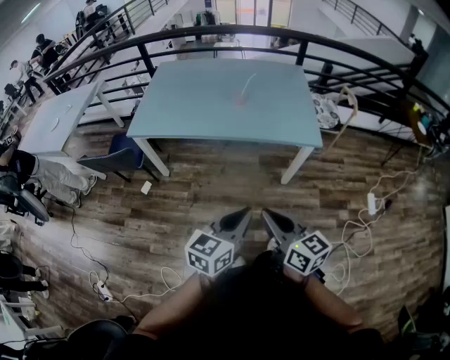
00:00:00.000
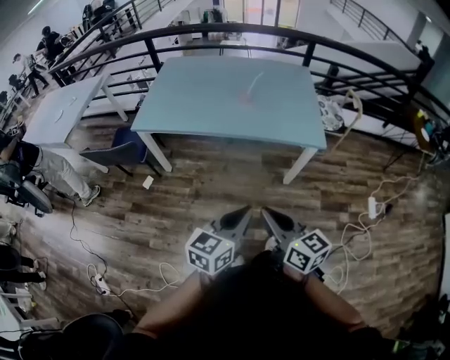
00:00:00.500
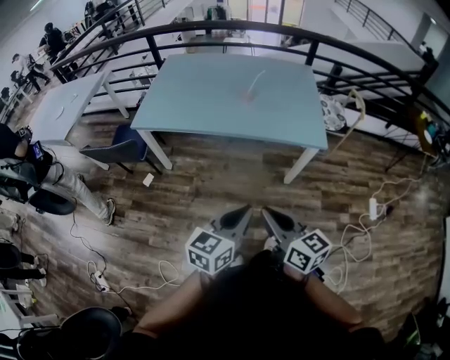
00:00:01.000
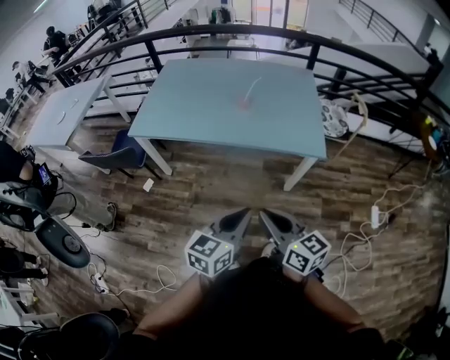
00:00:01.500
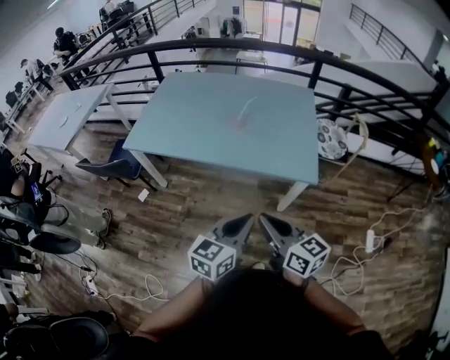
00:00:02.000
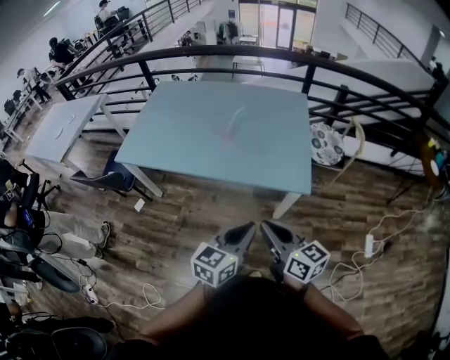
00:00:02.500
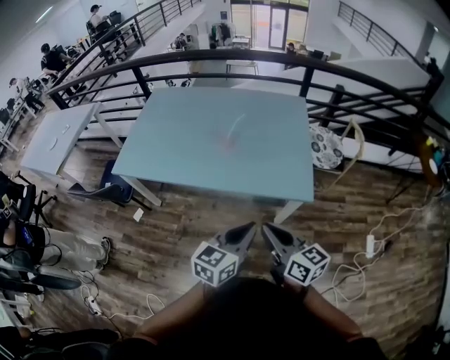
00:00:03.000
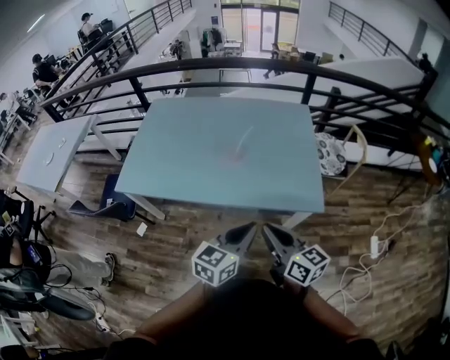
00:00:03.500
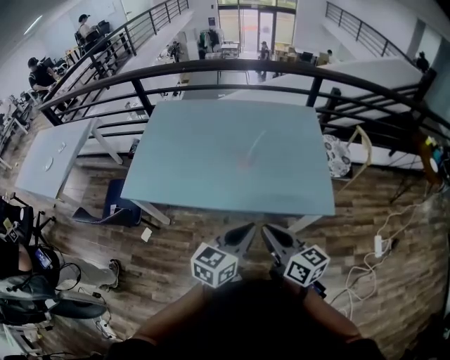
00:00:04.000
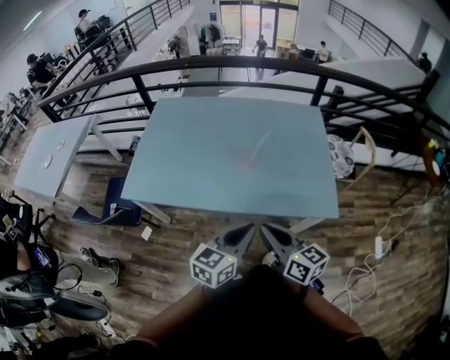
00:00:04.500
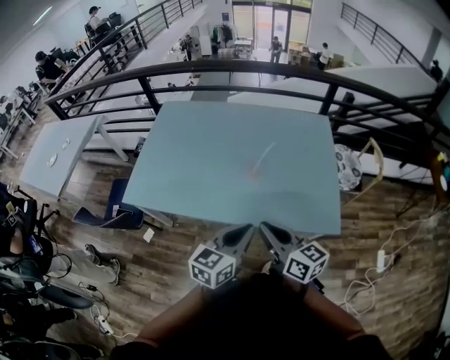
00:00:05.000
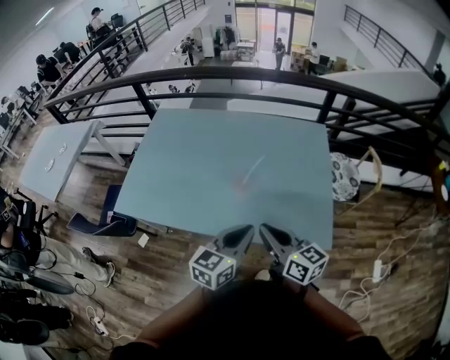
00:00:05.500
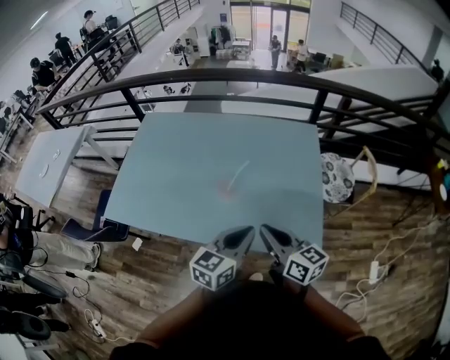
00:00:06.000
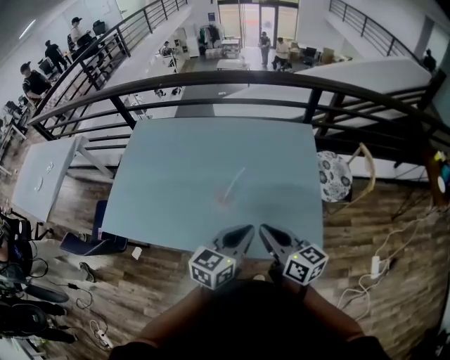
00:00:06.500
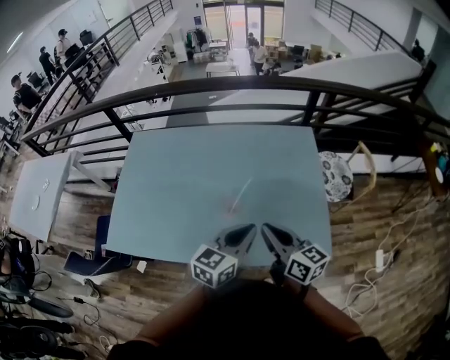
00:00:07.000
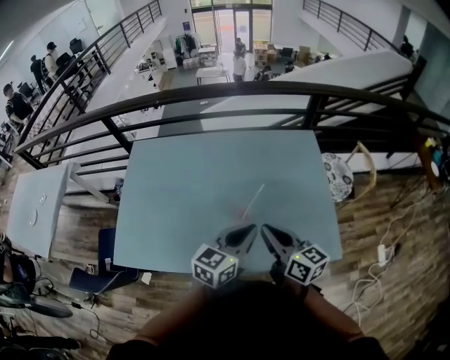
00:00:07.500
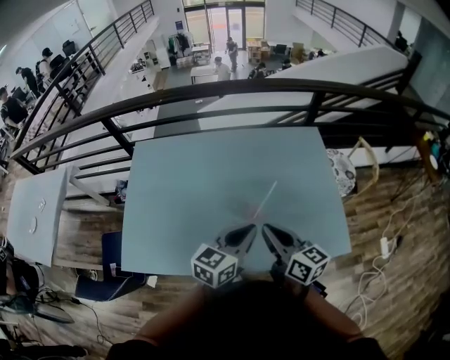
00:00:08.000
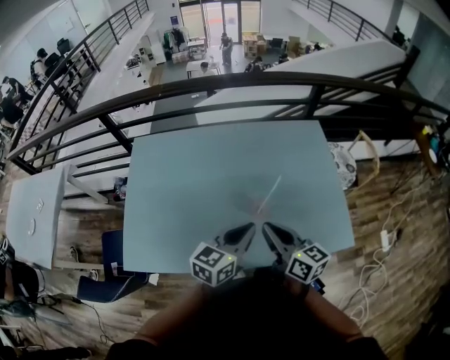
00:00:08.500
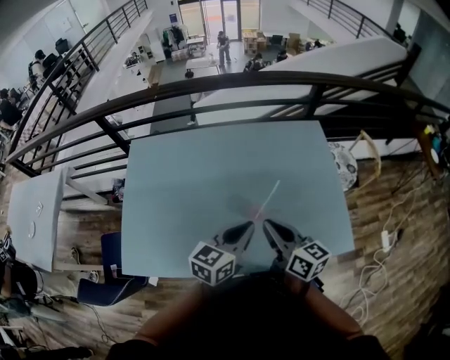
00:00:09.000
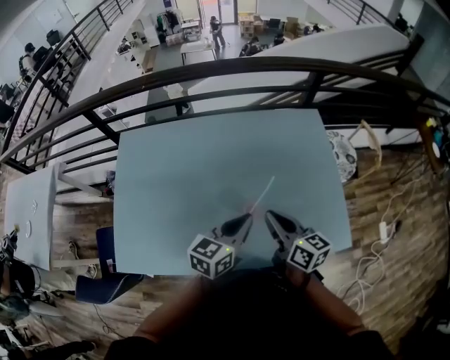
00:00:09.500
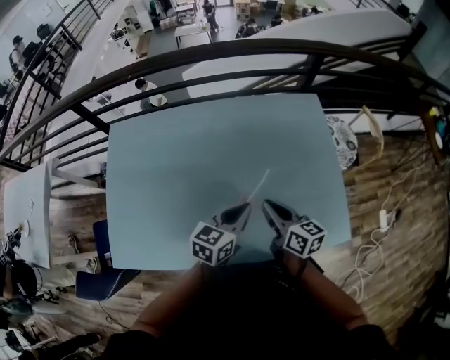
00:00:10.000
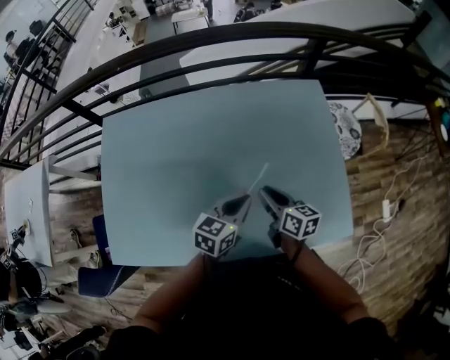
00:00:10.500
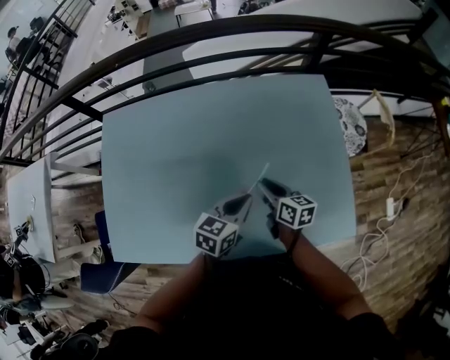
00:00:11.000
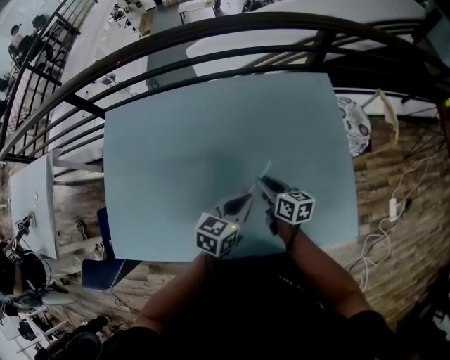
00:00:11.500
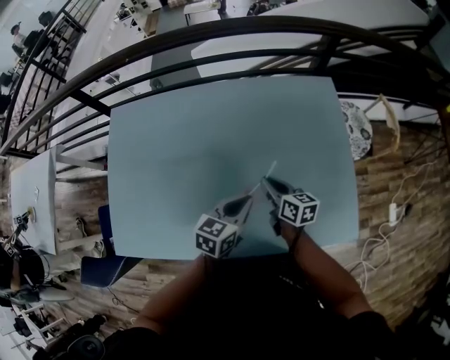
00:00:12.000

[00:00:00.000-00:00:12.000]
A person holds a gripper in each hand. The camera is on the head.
00:00:00.000 to 00:00:02.000: The left gripper moves to the right and forward, some 20 cm; the right gripper is displaced forward and to the right by some 20 cm.
00:00:02.000 to 00:00:04.000: The two grippers go some 25 cm forward and to the left.
00:00:04.000 to 00:00:06.000: The two grippers go approximately 25 cm forward and to the right.
00:00:06.000 to 00:00:08.000: Both grippers travel together to the left and forward, about 25 cm.
00:00:08.000 to 00:00:10.000: The right gripper is displaced forward, downward and to the right by about 15 cm, while the left gripper moves forward and downward, about 15 cm.
00:00:10.000 to 00:00:12.000: The left gripper moves downward, roughly 5 cm; the right gripper is displaced downward and forward by approximately 15 cm.

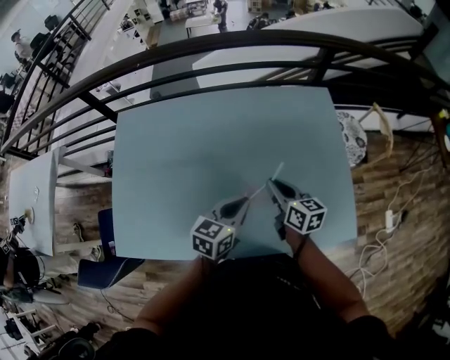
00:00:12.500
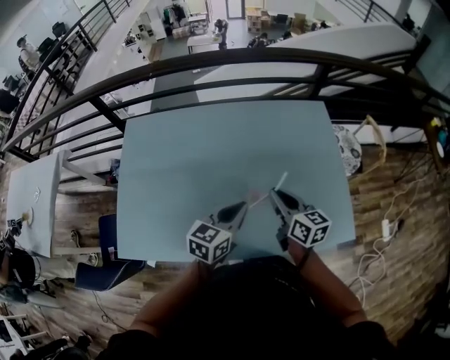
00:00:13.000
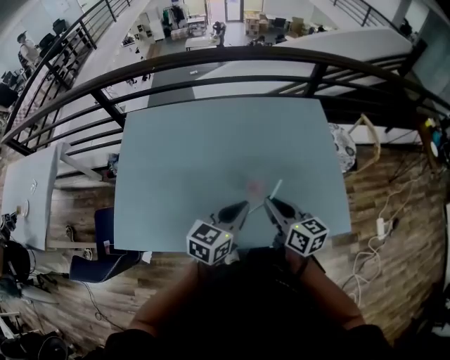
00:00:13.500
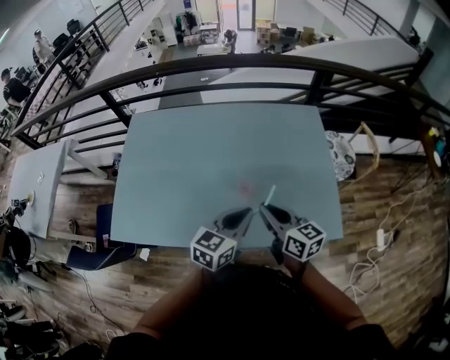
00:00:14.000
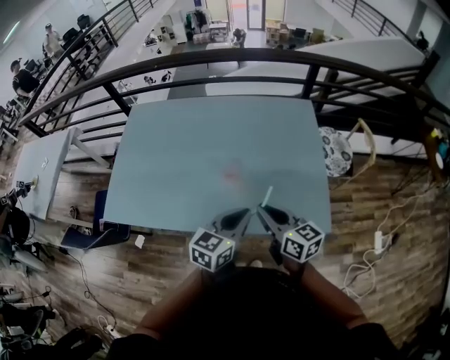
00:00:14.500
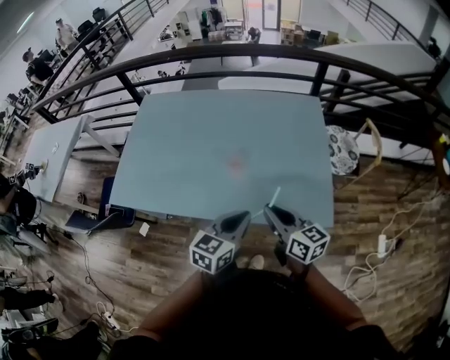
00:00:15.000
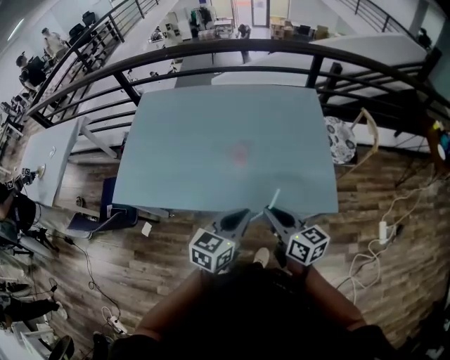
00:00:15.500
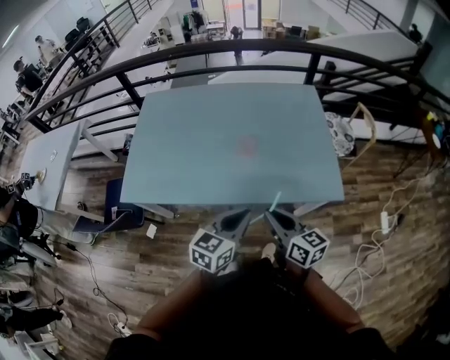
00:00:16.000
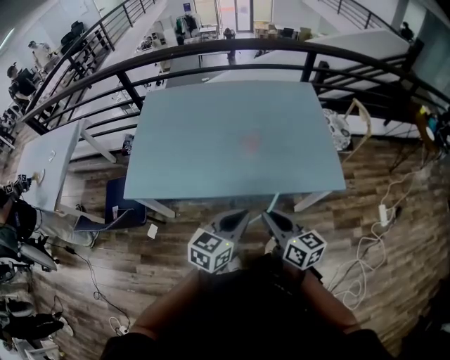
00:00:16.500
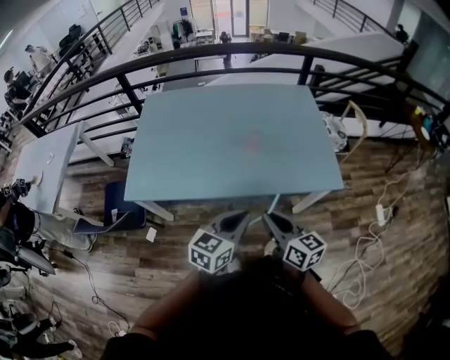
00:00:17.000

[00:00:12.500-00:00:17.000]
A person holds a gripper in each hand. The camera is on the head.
00:00:12.500 to 00:00:14.500: The left gripper goes roughly 25 cm backward, to the right and upward; the right gripper shifts some 25 cm backward and upward.
00:00:14.500 to 00:00:17.000: Both grippers move backward and to the left, roughly 25 cm.

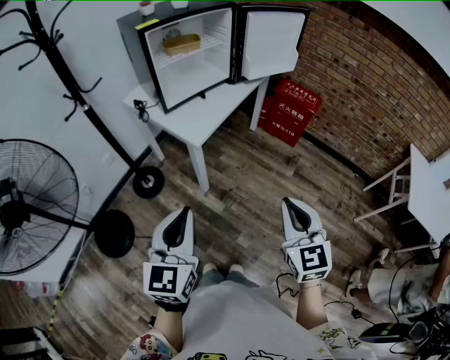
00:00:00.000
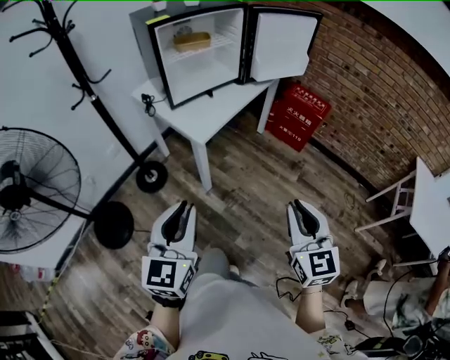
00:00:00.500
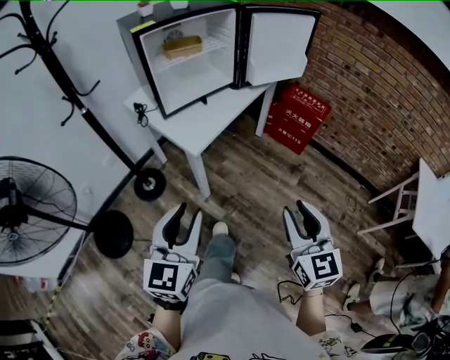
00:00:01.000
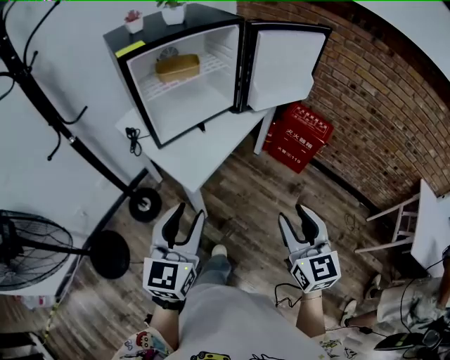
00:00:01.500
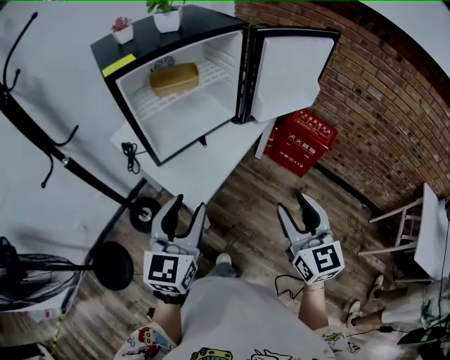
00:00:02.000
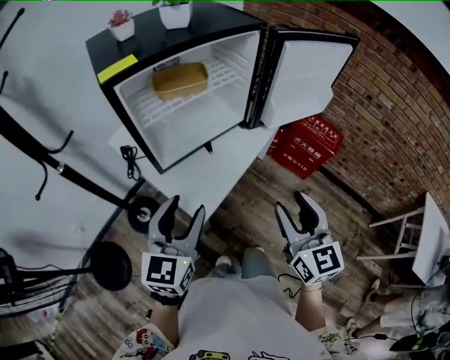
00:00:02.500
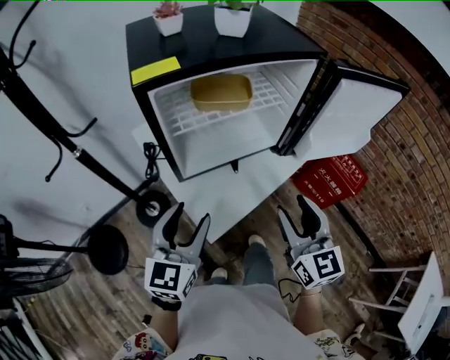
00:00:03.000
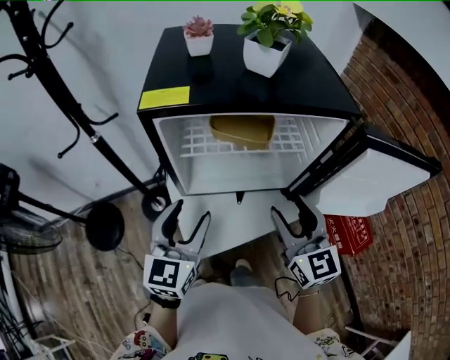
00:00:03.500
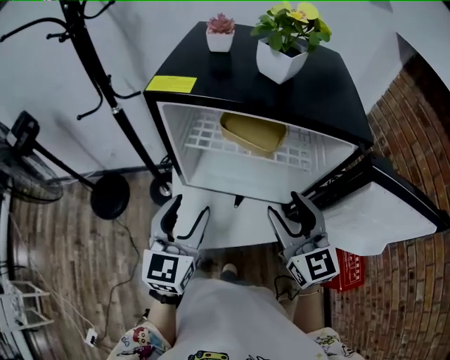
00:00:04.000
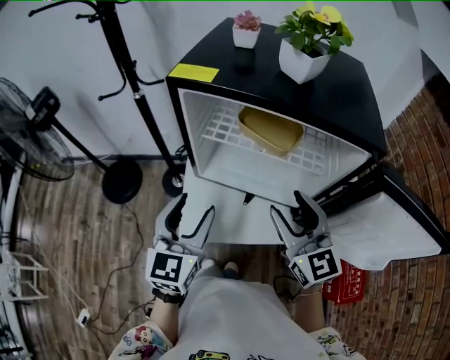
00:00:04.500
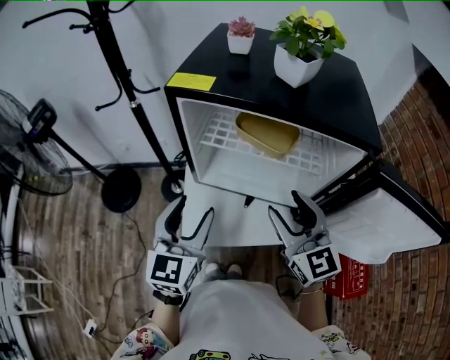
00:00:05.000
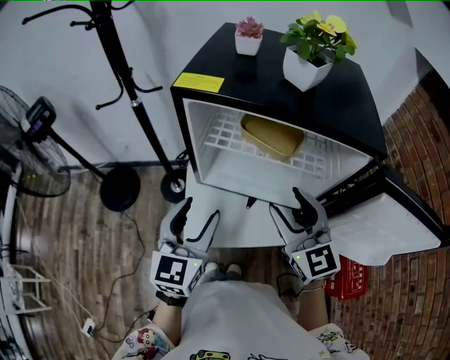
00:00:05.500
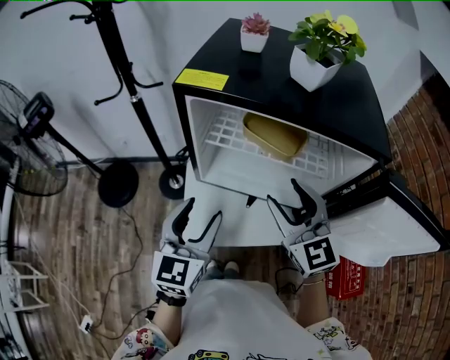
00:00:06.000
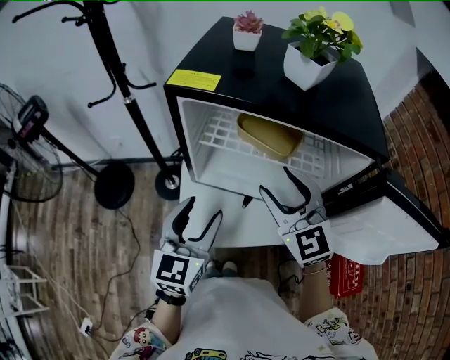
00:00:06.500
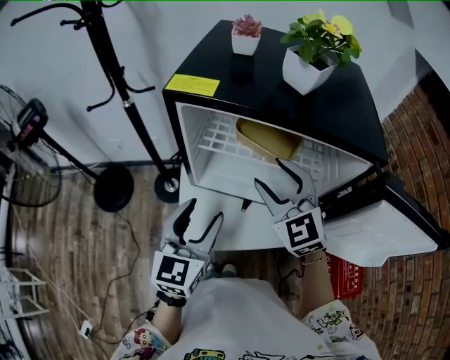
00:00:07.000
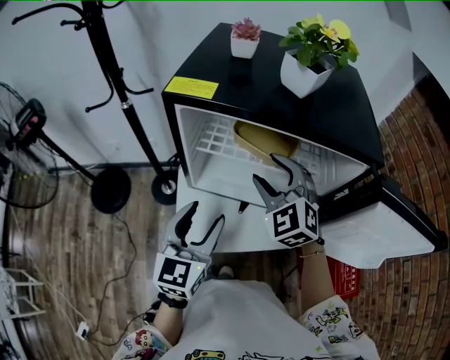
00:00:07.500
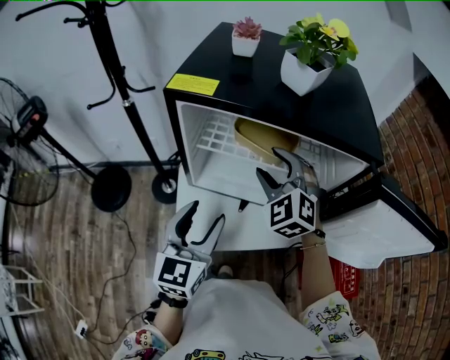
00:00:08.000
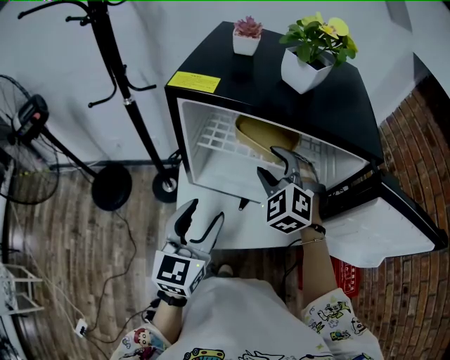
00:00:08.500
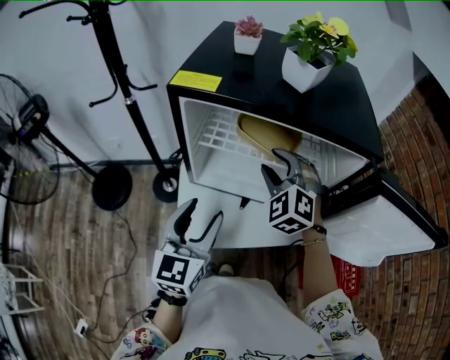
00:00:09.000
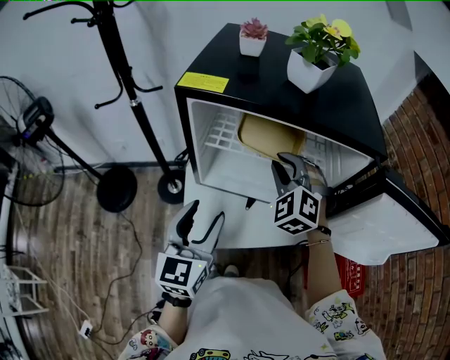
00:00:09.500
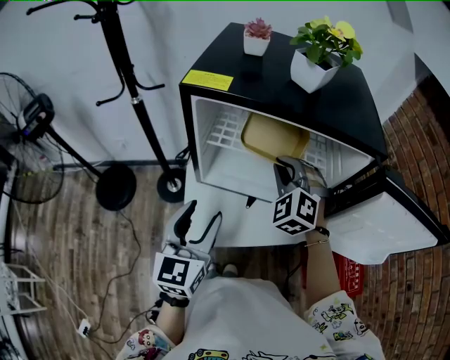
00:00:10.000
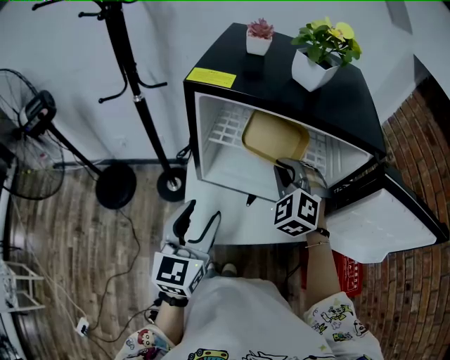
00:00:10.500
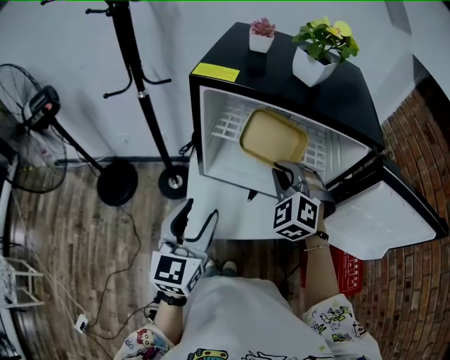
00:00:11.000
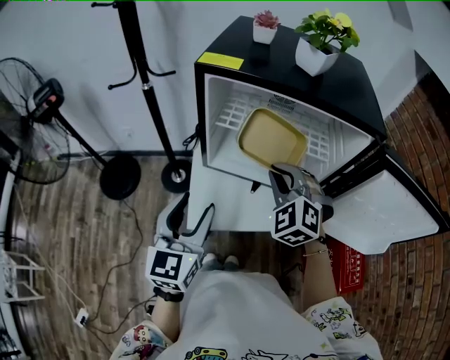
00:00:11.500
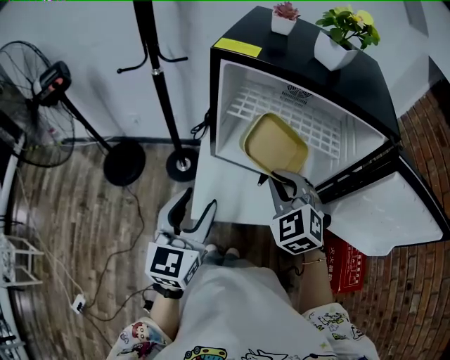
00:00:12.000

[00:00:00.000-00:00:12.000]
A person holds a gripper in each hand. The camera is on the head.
00:00:00.000 to 00:00:02.000: The two grippers go roughly 30 cm forward. The left gripper opens. Meanwhile the right gripper opens its fingers.
00:00:02.000 to 00:00:04.000: The right gripper shifts by approximately 35 cm, and turns by some 50 degrees. Meanwhile the left gripper changes place by about 20 cm, and changes its angle by about 50 degrees.
00:00:04.000 to 00:00:06.000: The right gripper shifts by some 5 cm.
00:00:06.000 to 00:00:08.000: The right gripper goes roughly 10 cm forward, and turns by roughly 40 degrees.
00:00:08.000 to 00:00:10.000: The right gripper closes up.
00:00:10.000 to 00:00:12.000: The right gripper goes some 10 cm backward. The left gripper moves backward, roughly 5 cm.
